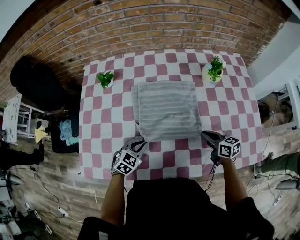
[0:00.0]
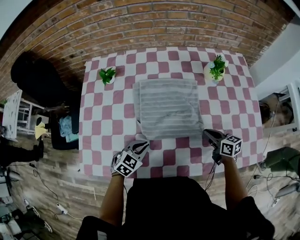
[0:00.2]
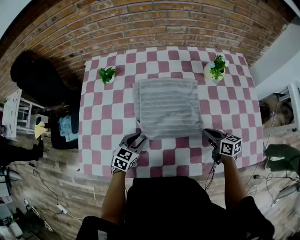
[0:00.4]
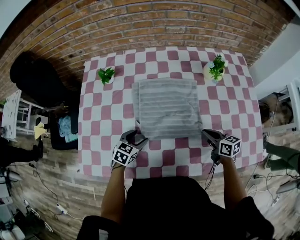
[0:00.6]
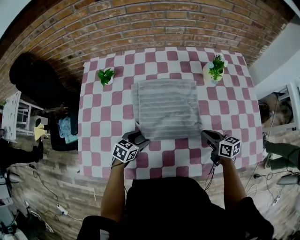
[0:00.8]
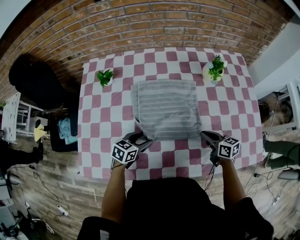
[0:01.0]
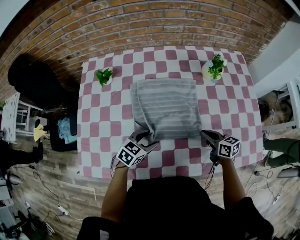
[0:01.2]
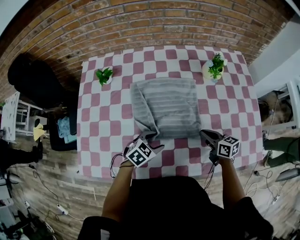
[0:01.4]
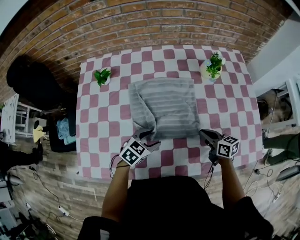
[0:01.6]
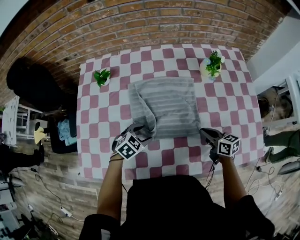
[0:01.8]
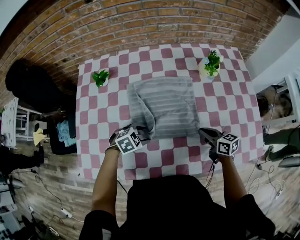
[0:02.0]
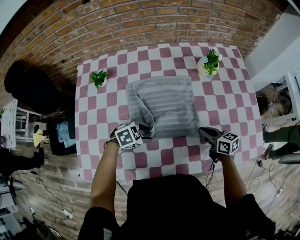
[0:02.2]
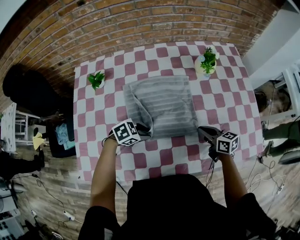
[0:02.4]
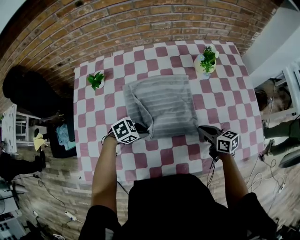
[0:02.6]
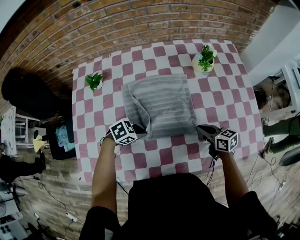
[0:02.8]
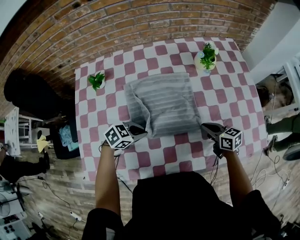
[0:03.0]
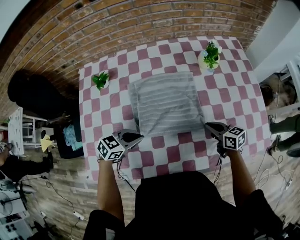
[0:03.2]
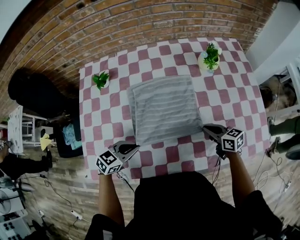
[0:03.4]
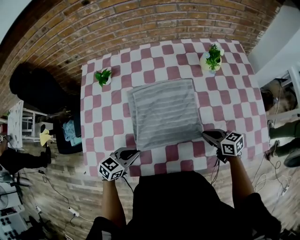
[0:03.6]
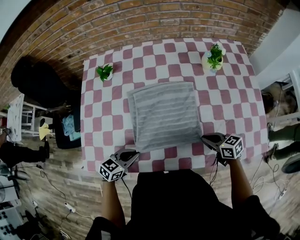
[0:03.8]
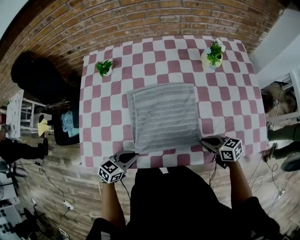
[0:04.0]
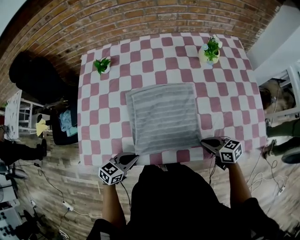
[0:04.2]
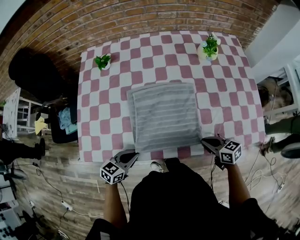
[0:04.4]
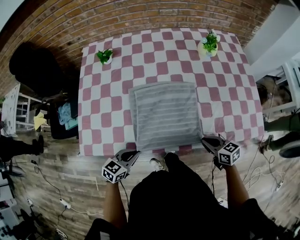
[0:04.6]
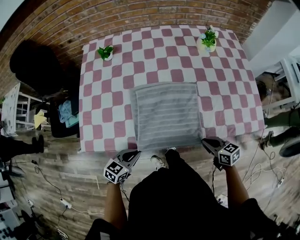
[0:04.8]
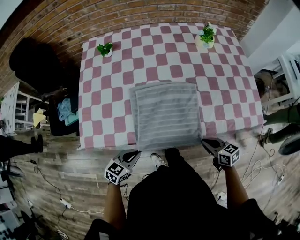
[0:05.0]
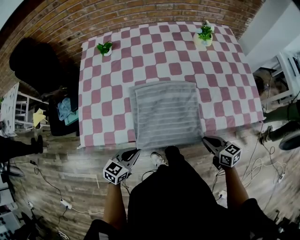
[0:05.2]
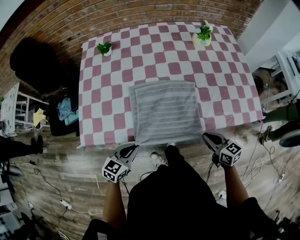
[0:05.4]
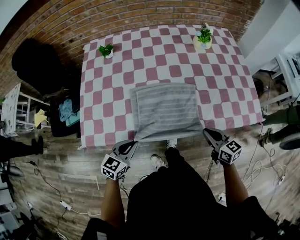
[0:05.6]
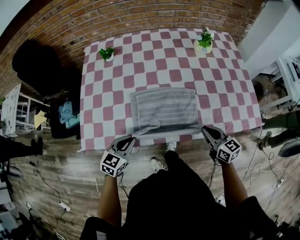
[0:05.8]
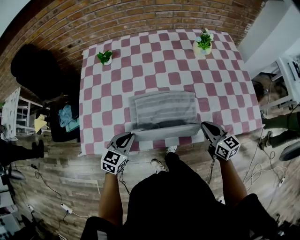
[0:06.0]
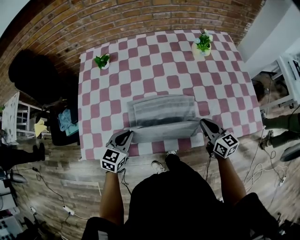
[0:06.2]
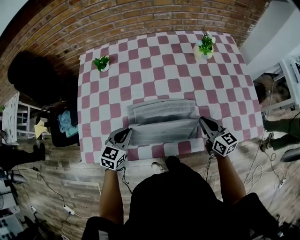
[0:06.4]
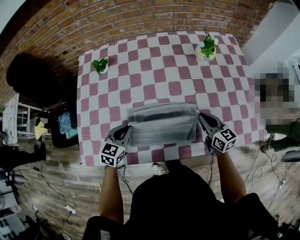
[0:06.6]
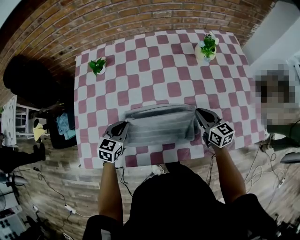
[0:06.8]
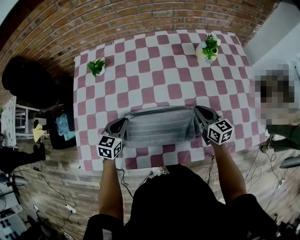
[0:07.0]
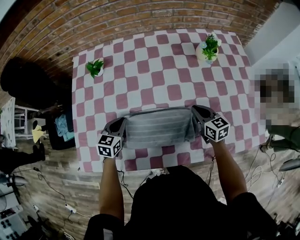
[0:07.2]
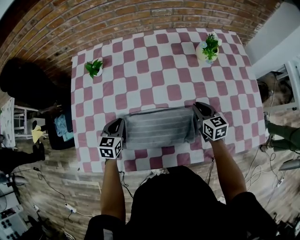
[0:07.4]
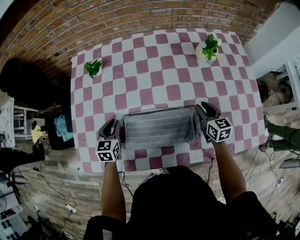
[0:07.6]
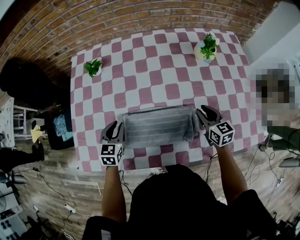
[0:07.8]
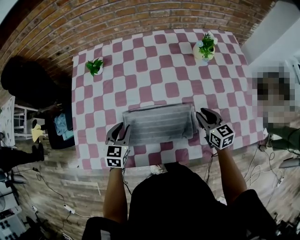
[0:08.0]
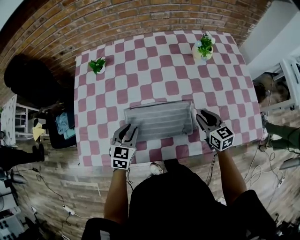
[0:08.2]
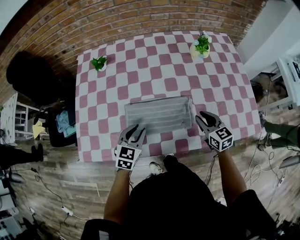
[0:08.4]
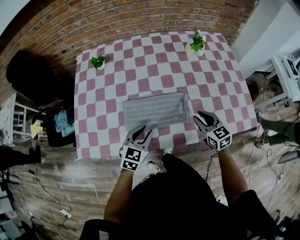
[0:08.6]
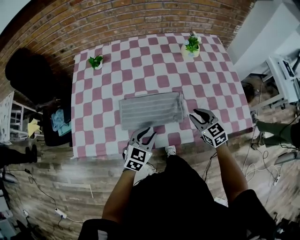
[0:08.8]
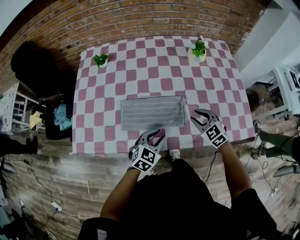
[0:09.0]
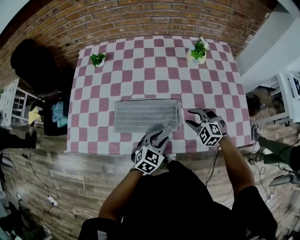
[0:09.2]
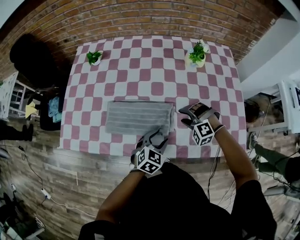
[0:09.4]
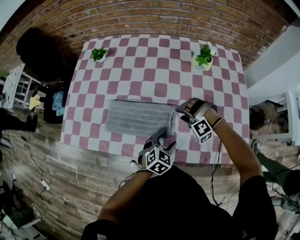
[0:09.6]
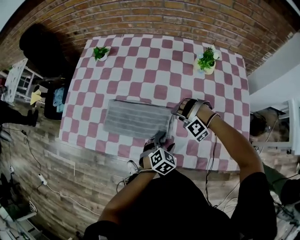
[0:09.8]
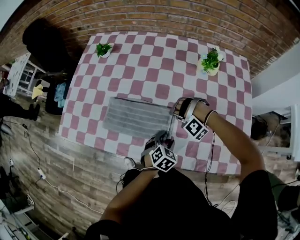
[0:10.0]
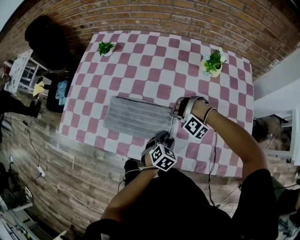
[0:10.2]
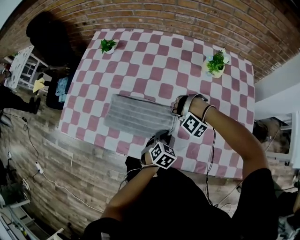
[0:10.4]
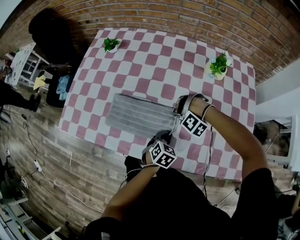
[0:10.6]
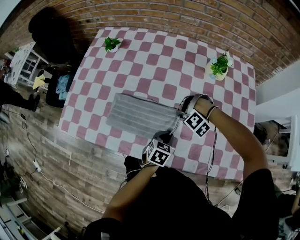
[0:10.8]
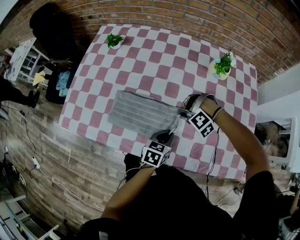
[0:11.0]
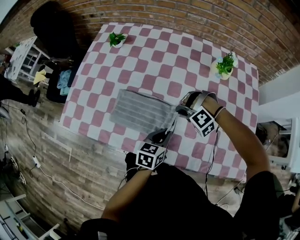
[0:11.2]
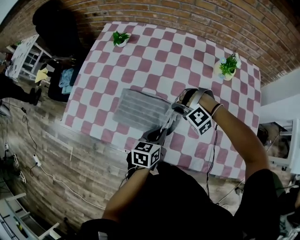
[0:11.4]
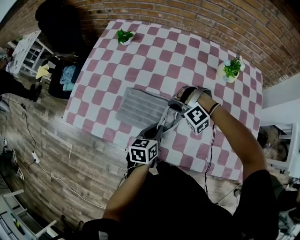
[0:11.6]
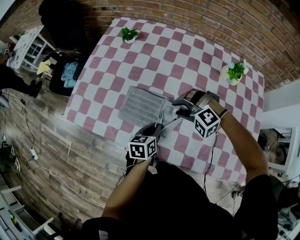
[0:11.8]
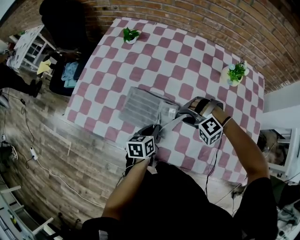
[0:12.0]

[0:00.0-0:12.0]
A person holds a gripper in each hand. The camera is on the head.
0:00.0 to 0:01.6: The left gripper moves to the right, approximately 5 cm, and opens its fingers.
0:01.6 to 0:03.0: The left gripper rotates some 20 degrees, and closes.
0:03.0 to 0:04.4: The right gripper moves approximately 15 cm. The left gripper shifts by roughly 20 cm, and changes its angle by approximately 40 degrees.
0:04.4 to 0:06.0: The two grippers go about 5 cm upward. The left gripper goes backward and returns, approximately 10 cm each way, and changes its angle by approximately 20 degrees. Meanwhile the right gripper travels backward and back again, some 10 cm each way, and swivels approximately 30 degrees.
0:06.0 to 0:07.6: The two grippers go approximately 20 cm forward. The left gripper swivels about 20 degrees.
0:07.6 to 0:09.0: The right gripper is displaced backward by some 15 cm, and rotates around the line of its fingers by roughly 40 degrees, counterclockwise from behind. The left gripper heads to the right and backward, covering roughly 30 cm, and swivels roughly 30 degrees.
0:09.0 to 0:10.4: The left gripper shifts roughly 20 cm to the right, downward and forward, and swivels approximately 30 degrees. Meanwhile the right gripper moves downward and forward, about 15 cm, and rolls counterclockwise, seen from behind, by approximately 100 degrees.
0:10.4 to 0:12.0: The right gripper shifts by roughly 10 cm, and swivels about 30 degrees, while the left gripper moves about 15 cm, and twists some 50 degrees counterclockwise, seen from behind.

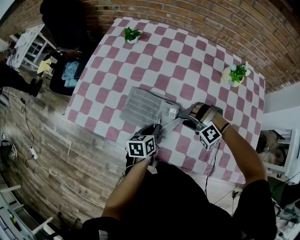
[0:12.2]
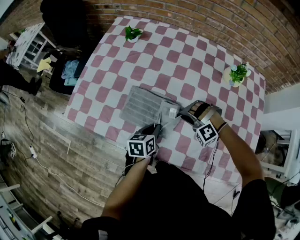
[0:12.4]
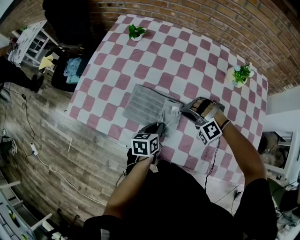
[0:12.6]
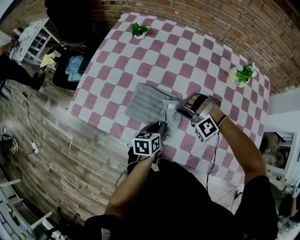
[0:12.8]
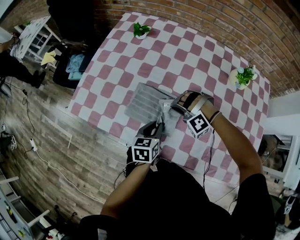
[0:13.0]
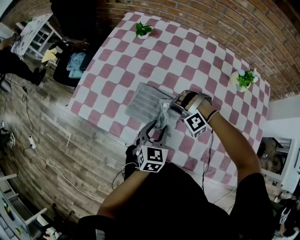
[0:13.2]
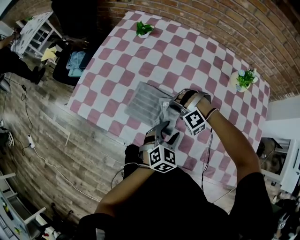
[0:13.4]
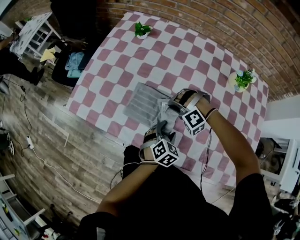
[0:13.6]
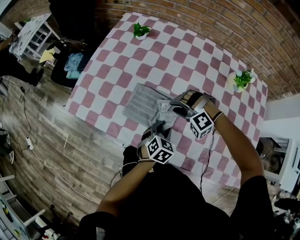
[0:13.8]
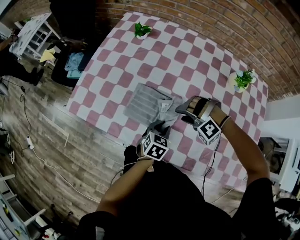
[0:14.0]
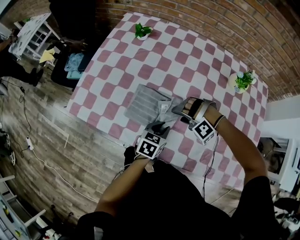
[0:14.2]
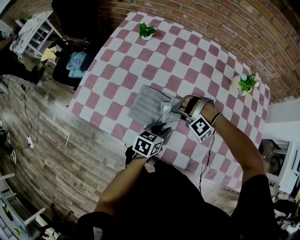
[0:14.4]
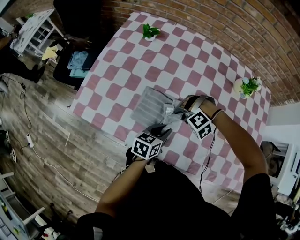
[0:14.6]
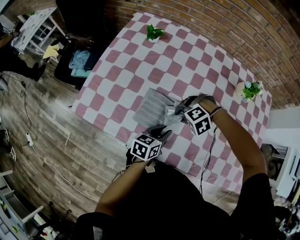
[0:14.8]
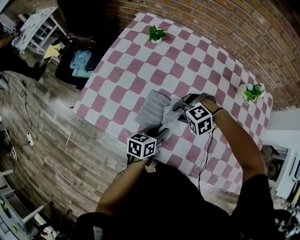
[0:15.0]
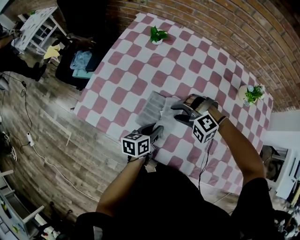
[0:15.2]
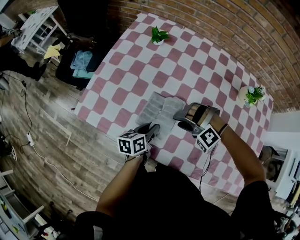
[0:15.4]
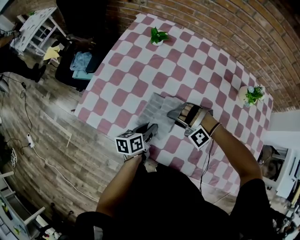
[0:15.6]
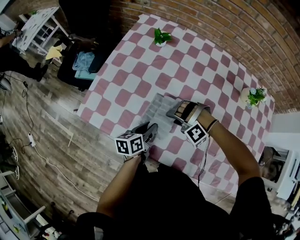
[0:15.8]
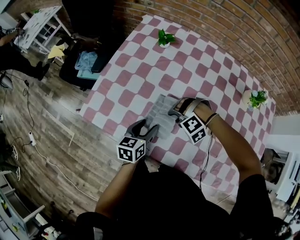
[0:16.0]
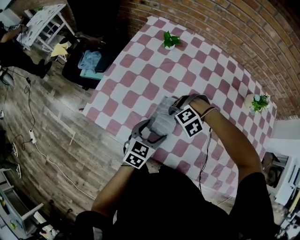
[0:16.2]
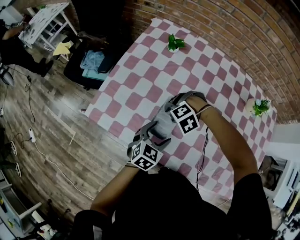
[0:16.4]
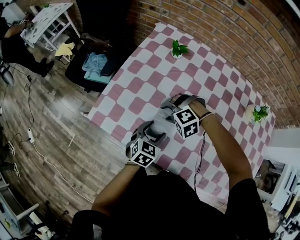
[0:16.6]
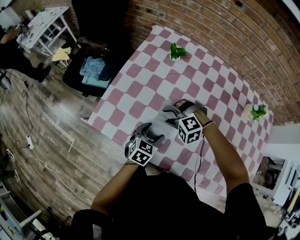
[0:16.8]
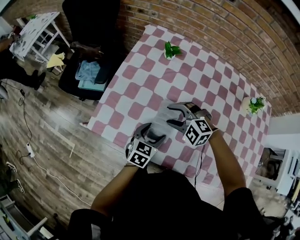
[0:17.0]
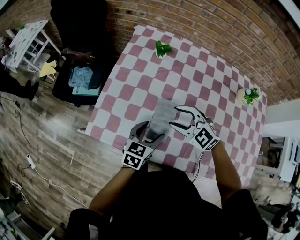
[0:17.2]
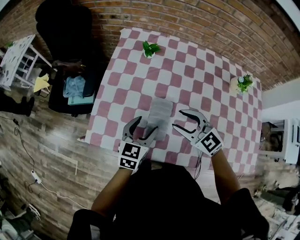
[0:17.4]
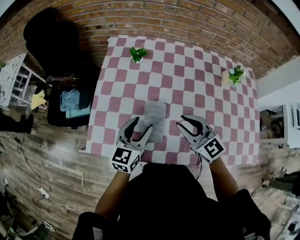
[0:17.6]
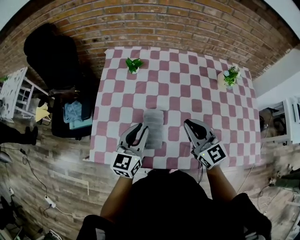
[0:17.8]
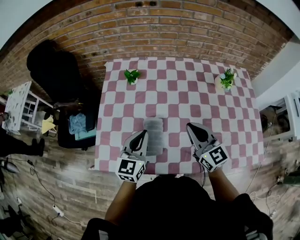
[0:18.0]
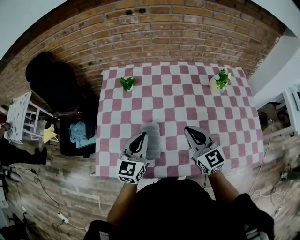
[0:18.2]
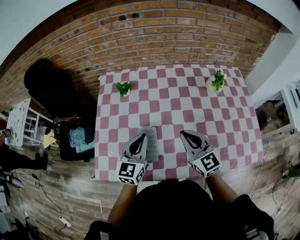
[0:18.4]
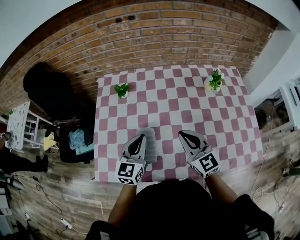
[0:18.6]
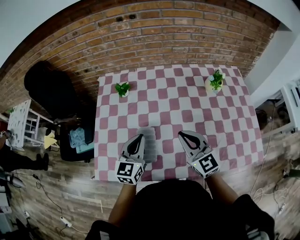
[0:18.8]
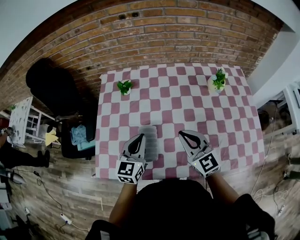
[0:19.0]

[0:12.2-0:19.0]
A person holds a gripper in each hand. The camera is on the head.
0:12.2 to 0:13.6: The left gripper shifts approximately 5 cm to the right, rotates around the line of its fingers by roughly 50 degrees, clockwise from behind, and opens its fingers; the right gripper moves to the left and forward, some 10 cm.
0:13.6 to 0:15.0: The left gripper moves some 10 cm, and rotates around the line of its fingers by approximately 50 degrees, counterclockwise from behind; the right gripper swivels some 30 degrees.
0:15.0 to 0:16.2: The right gripper shifts by some 5 cm, while the left gripper changes place by about 10 cm, swivels about 30 degrees, and opens.
0:16.2 to 0:17.6: The right gripper goes about 20 cm upward, and tilts its fingers approximately 70 degrees upward. Meanwhile the left gripper is displaced upward by about 10 cm, and changes its angle by roughly 20 degrees.
0:17.6 to 0:19.0: The left gripper moves to the right and upward, approximately 10 cm, and closes. The right gripper is displaced to the right by some 10 cm.

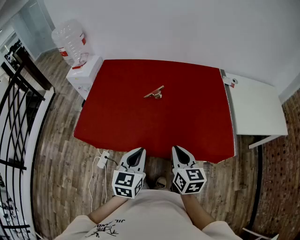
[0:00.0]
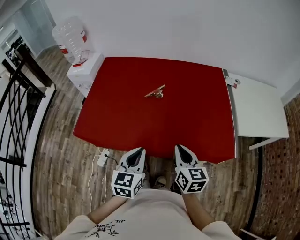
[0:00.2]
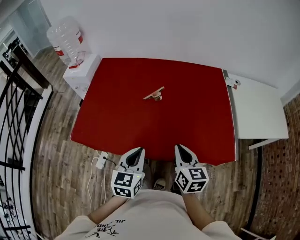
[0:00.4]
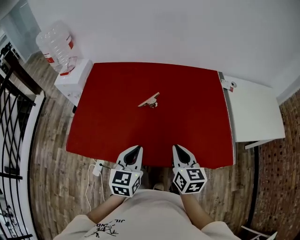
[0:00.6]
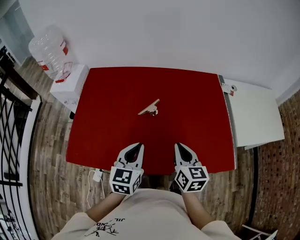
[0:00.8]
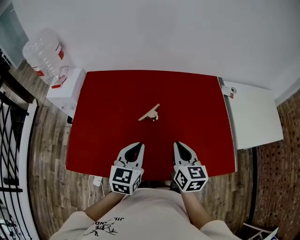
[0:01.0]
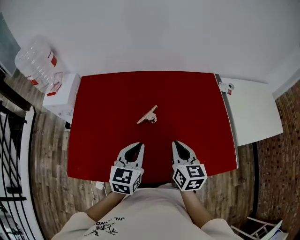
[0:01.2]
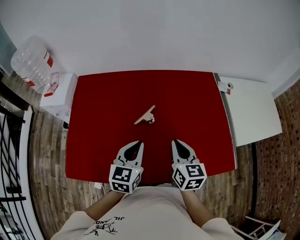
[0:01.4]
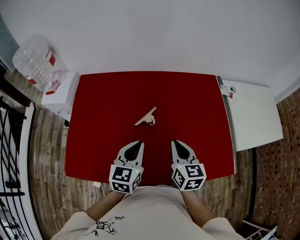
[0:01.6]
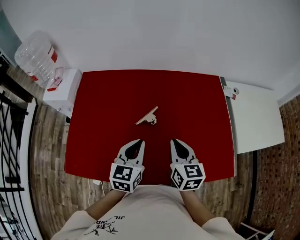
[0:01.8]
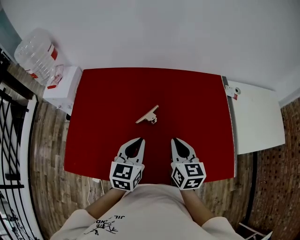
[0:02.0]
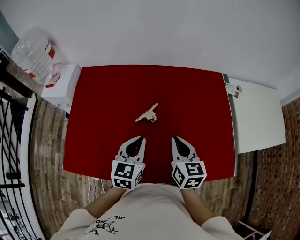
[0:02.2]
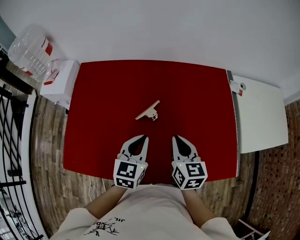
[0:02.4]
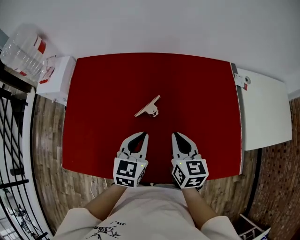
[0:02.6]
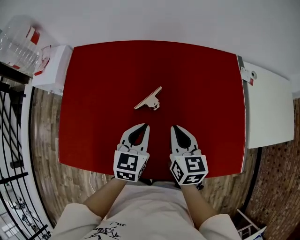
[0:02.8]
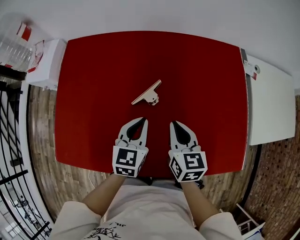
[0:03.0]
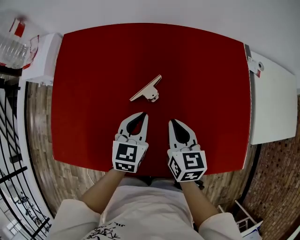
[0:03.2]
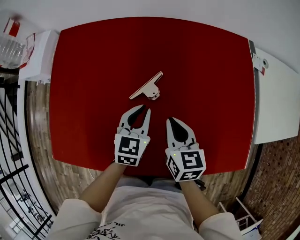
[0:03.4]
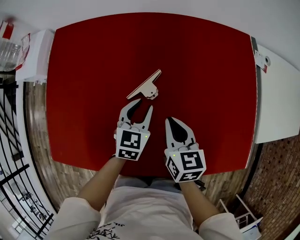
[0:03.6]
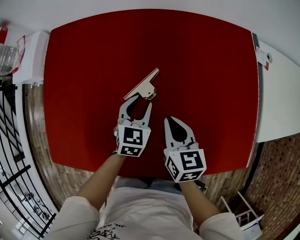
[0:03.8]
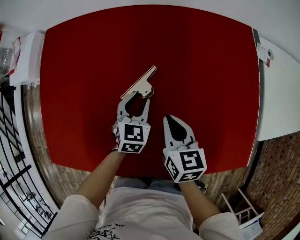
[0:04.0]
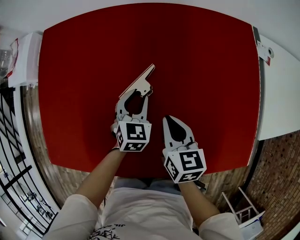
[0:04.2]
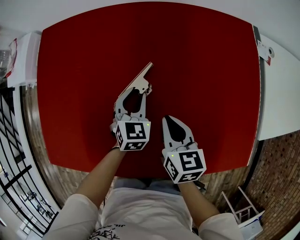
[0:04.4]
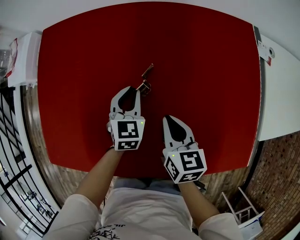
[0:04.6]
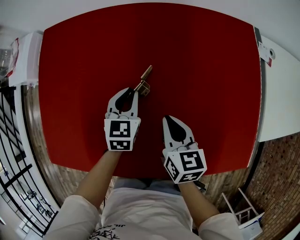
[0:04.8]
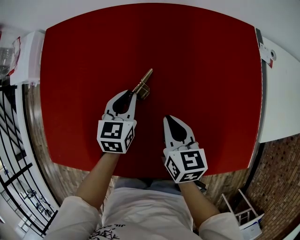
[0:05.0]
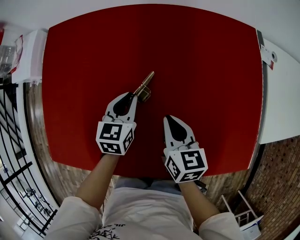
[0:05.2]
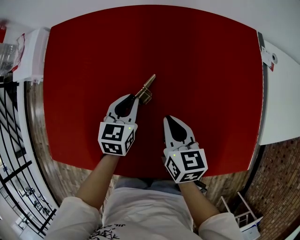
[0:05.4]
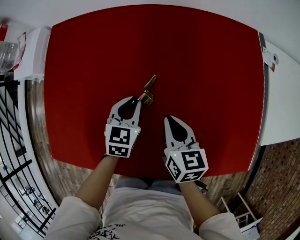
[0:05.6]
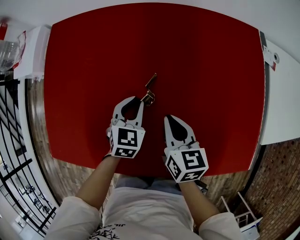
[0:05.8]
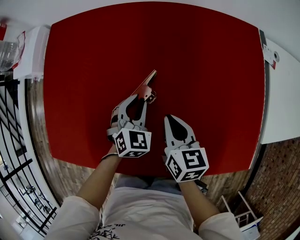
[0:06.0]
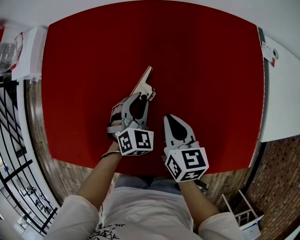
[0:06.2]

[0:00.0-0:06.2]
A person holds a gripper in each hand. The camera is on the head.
0:00.0 to 0:01.6: Both grippers move forward, roughly 25 cm.
0:01.6 to 0:03.2: Both grippers move downward and forward, about 15 cm.
0:03.2 to 0:04.6: The right gripper moves downward, some 5 cm. The left gripper heads downward and forward, covering some 15 cm.
0:04.6 to 0:06.2: The left gripper changes place by roughly 5 cm, and swivels some 30 degrees.
